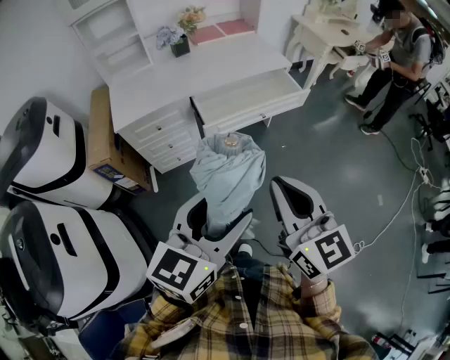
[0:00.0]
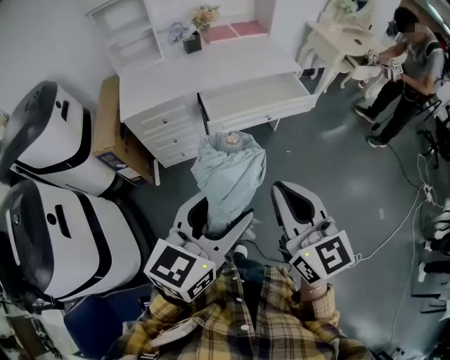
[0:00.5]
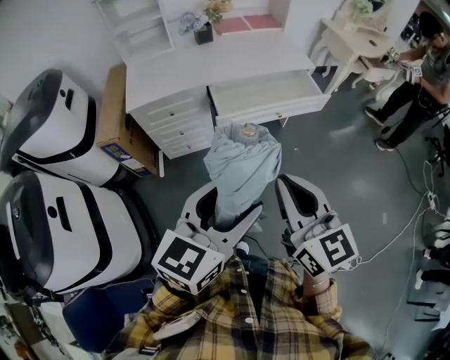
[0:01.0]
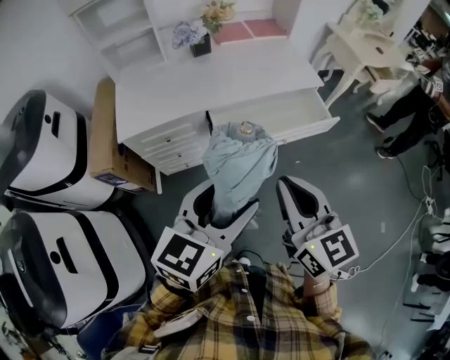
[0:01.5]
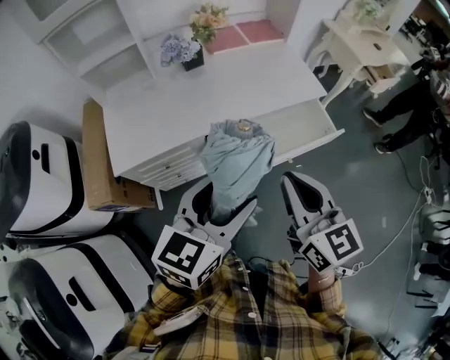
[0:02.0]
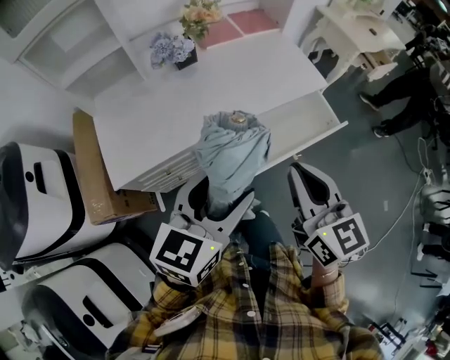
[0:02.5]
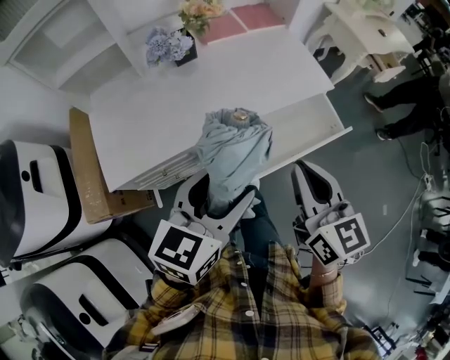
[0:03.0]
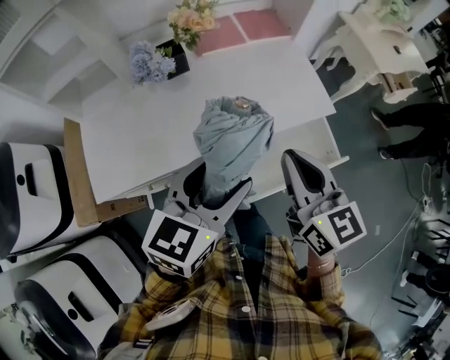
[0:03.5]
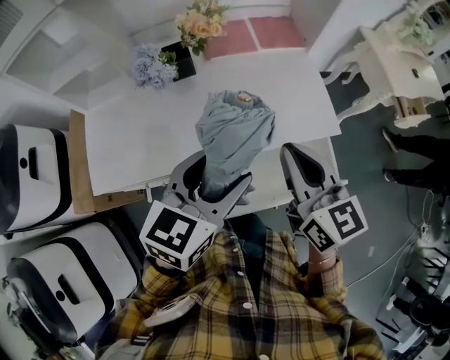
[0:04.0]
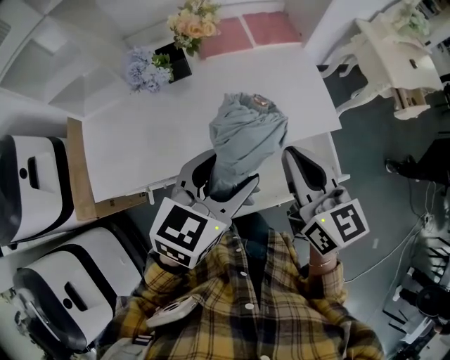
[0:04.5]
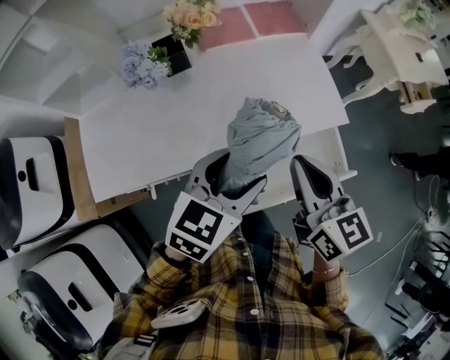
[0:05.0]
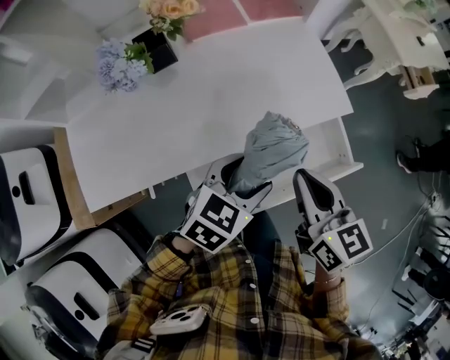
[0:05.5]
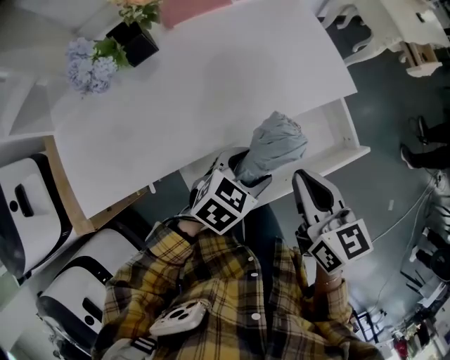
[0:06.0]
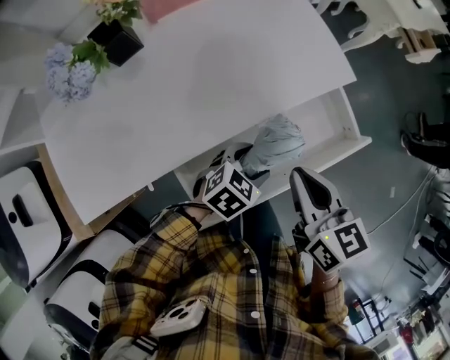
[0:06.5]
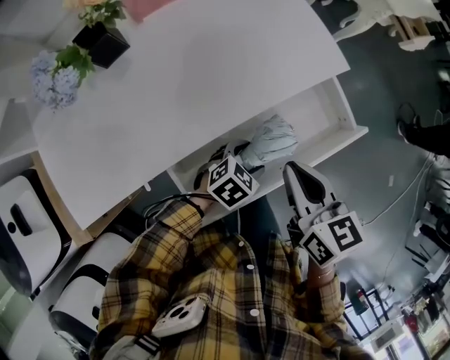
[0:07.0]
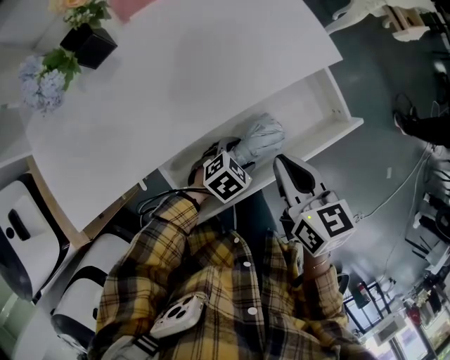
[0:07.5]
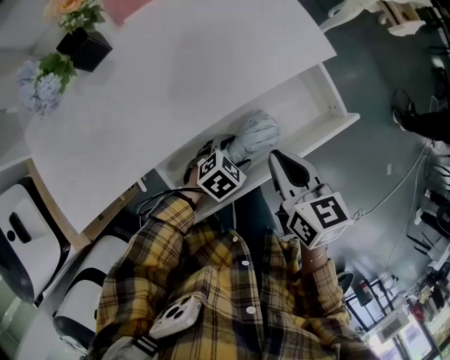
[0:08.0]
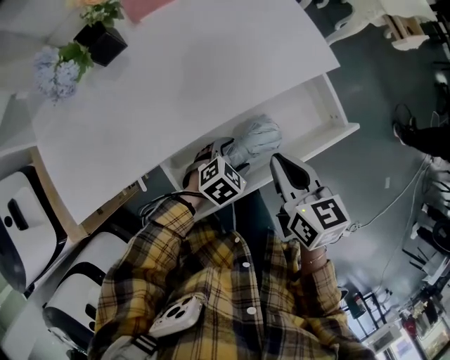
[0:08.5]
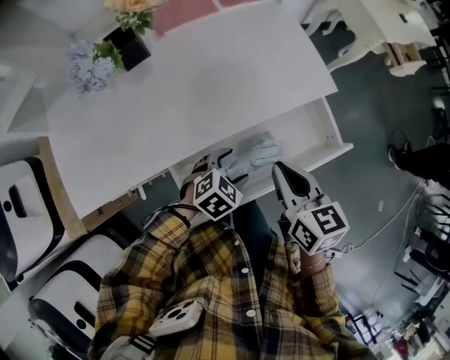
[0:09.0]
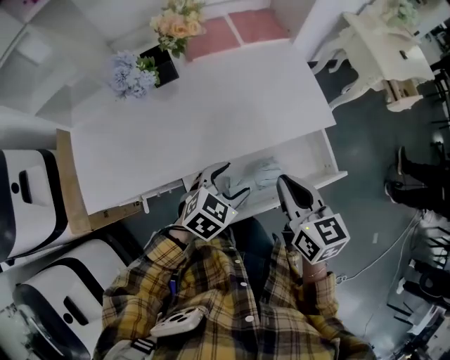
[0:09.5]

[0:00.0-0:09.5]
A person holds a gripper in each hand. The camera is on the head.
0:00.0 to 0:02.0: Both grippers move forward, about 30 cm.
0:02.0 to 0:04.0: The two grippers go about 25 cm forward.
0:04.0 to 0:05.5: The grippers both shift downward by approximately 15 cm. The left gripper swivels some 30 degrees.
0:05.5 to 0:07.5: The right gripper shifts some 10 cm downward. The left gripper is displaced downward by approximately 25 cm, and swivels roughly 30 degrees.
0:07.5 to 0:09.5: The right gripper goes approximately 10 cm upward; the left gripper travels upward by approximately 20 cm, and changes its angle by roughly 30 degrees.

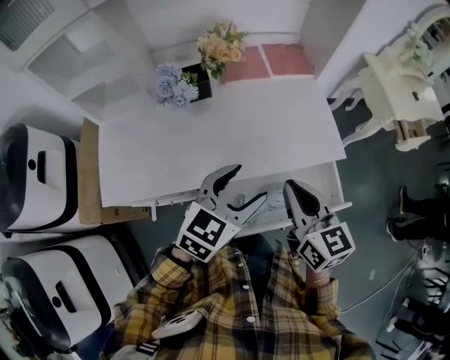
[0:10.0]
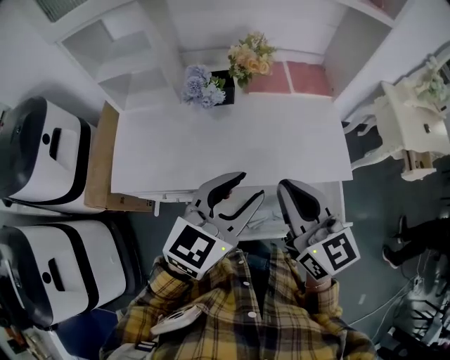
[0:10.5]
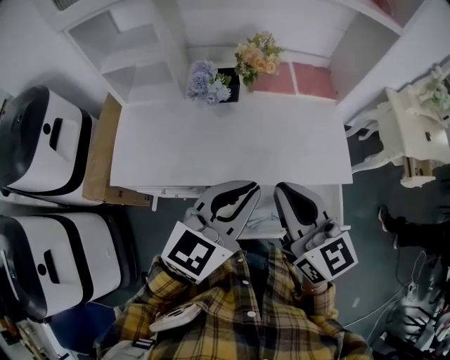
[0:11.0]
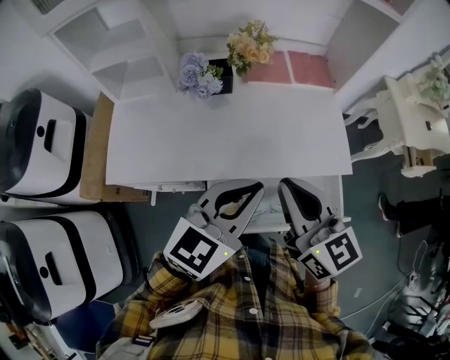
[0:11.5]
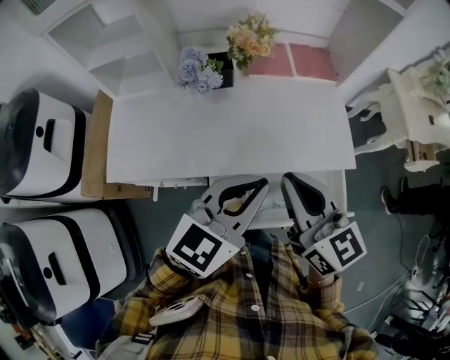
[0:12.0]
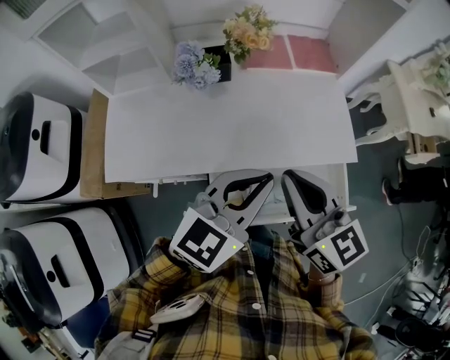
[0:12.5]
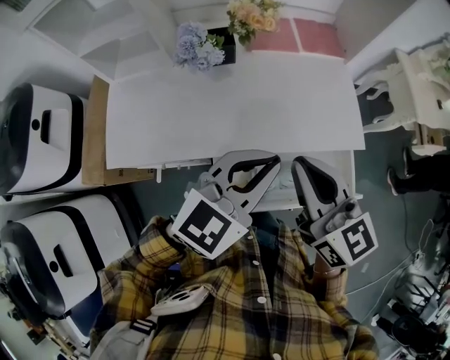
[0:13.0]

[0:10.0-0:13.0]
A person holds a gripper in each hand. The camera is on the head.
0:10.0 to 0:11.5: The left gripper heads upward, covering roughly 10 cm, and closes up. The right gripper goes about 10 cm upward and to the left.
0:11.5 to 0:13.0: The grippers stay close to where they were, moving slightly.

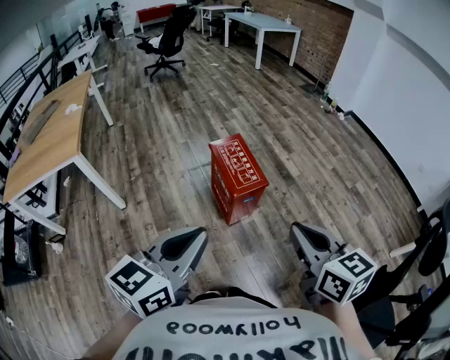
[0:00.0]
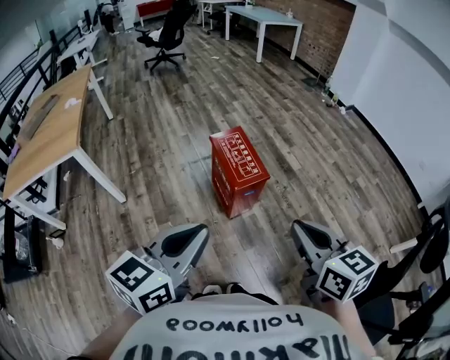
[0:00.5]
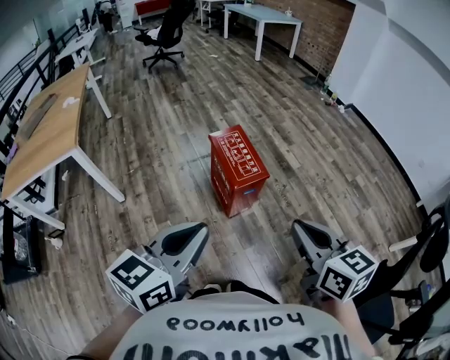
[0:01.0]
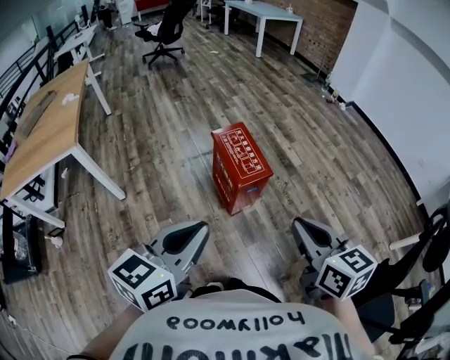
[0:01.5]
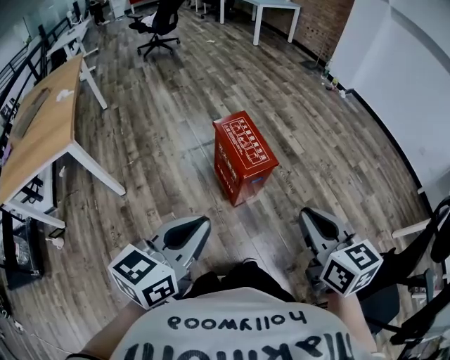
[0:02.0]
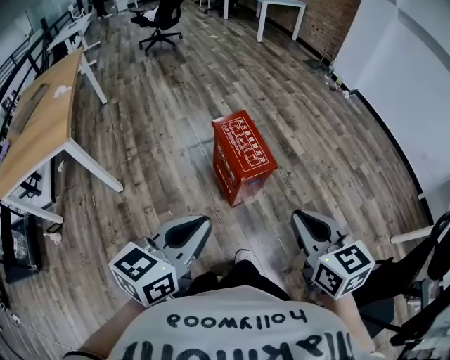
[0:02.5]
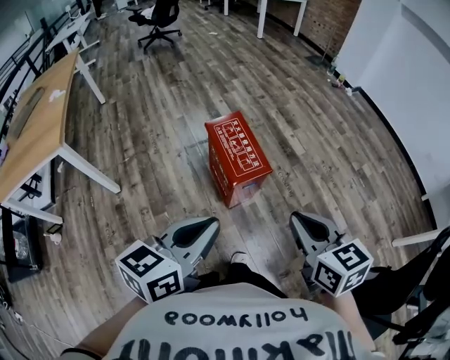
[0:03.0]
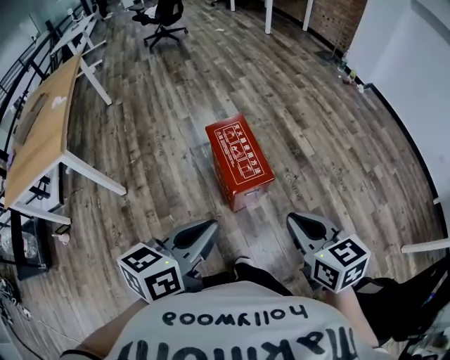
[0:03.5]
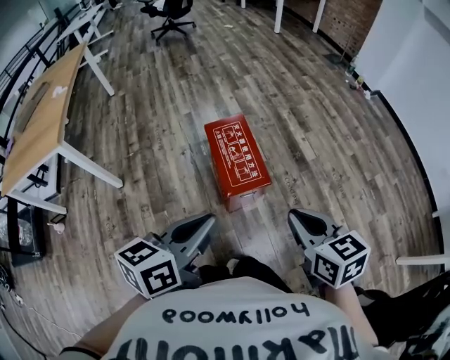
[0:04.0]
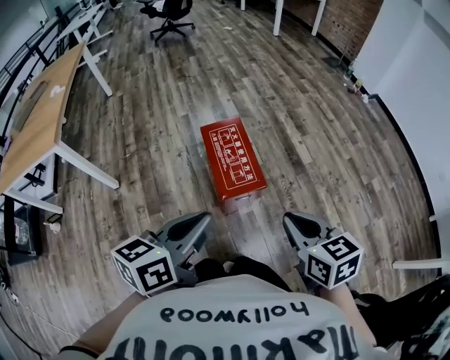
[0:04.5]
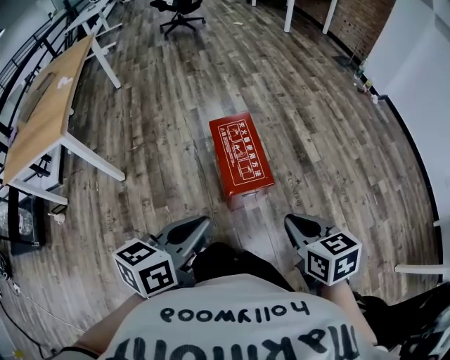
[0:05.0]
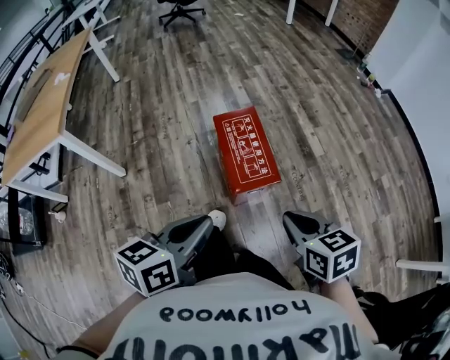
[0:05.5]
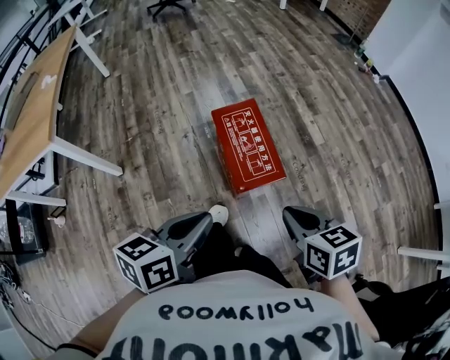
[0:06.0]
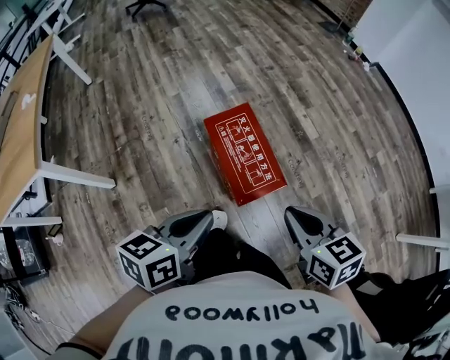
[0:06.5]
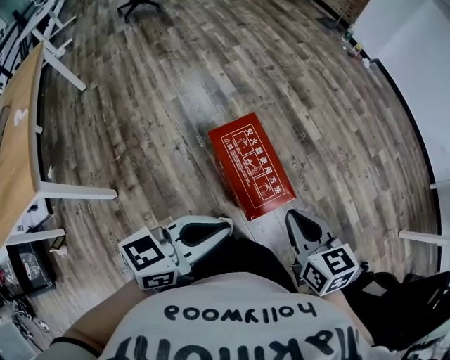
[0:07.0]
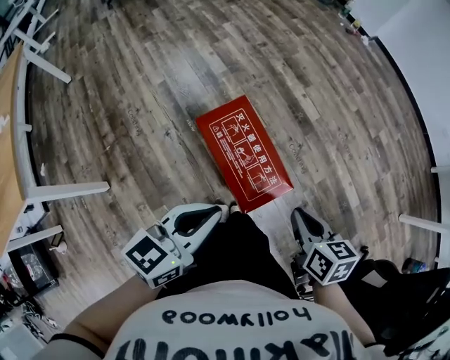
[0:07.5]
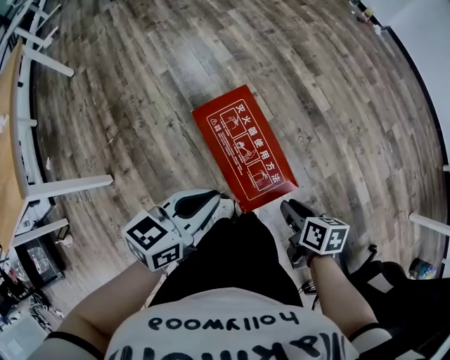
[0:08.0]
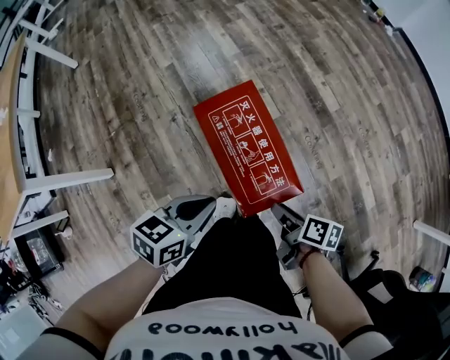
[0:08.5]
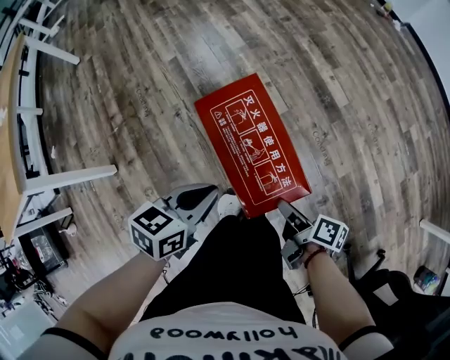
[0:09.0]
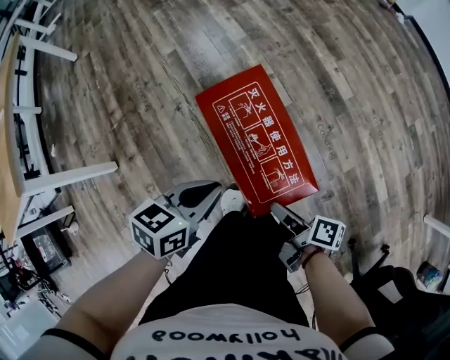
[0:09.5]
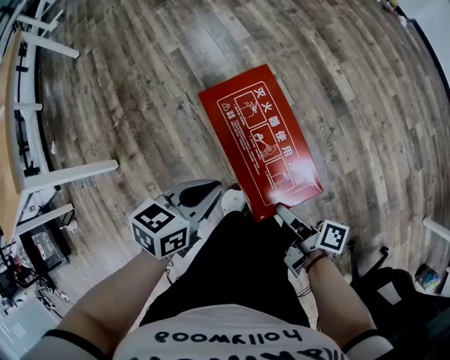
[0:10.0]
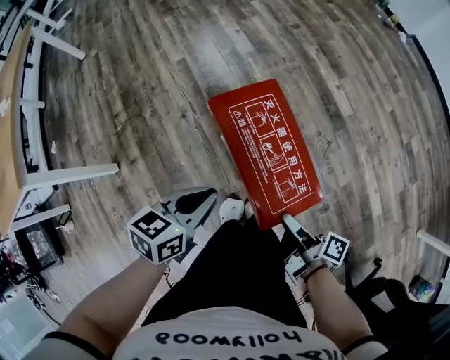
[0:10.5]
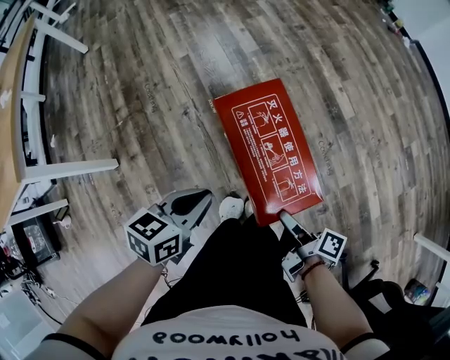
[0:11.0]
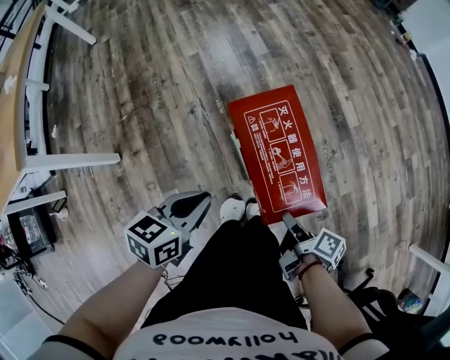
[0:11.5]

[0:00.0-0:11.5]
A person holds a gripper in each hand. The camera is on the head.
0:00.0 to 0:02.0: The right gripper ends up approximately 5 cm from where it was; the left gripper changes place by some 5 cm.
0:02.0 to 0:04.0: The left gripper shifts some 20 cm forward and to the right. Meanwhile the right gripper moves forward, to the right and downward, roughly 20 cm.
0:04.0 to 0:06.0: Both grippers move downward and to the left, approximately 10 cm.
0:06.0 to 0:07.5: The left gripper shifts approximately 15 cm forward, and swivels about 30 degrees, while the right gripper travels forward and downward by approximately 15 cm, and changes its angle by about 30 degrees.
0:07.5 to 0:09.5: Both grippers move downward, approximately 20 cm. The left gripper changes its angle by roughly 20 degrees, while the right gripper twists about 50 degrees clockwise, seen from behind, and opens up.
0:09.5 to 0:11.5: The left gripper shifts approximately 10 cm to the left.

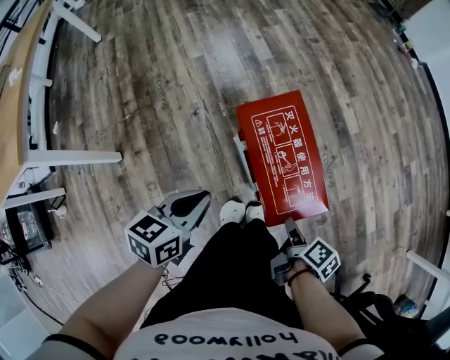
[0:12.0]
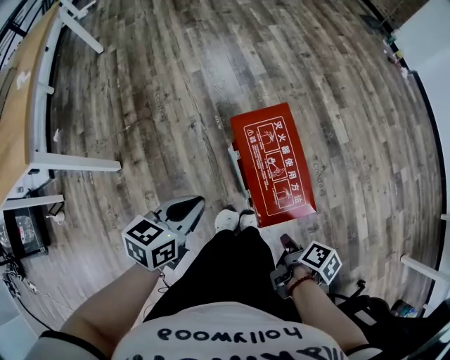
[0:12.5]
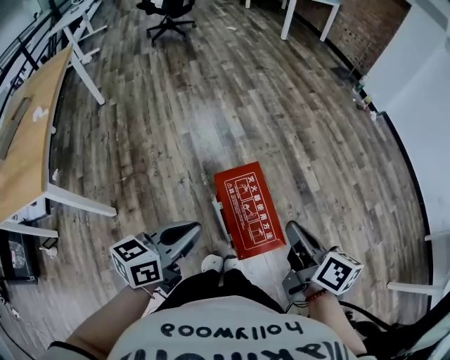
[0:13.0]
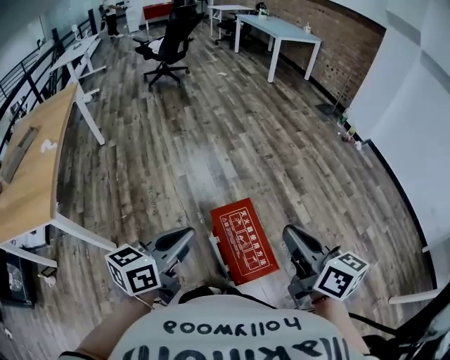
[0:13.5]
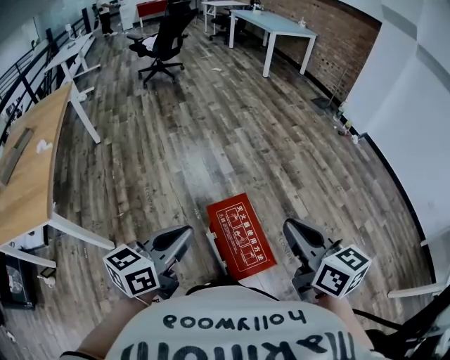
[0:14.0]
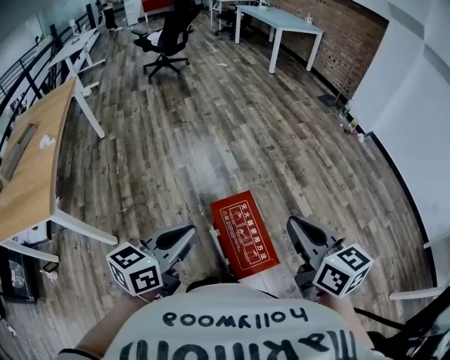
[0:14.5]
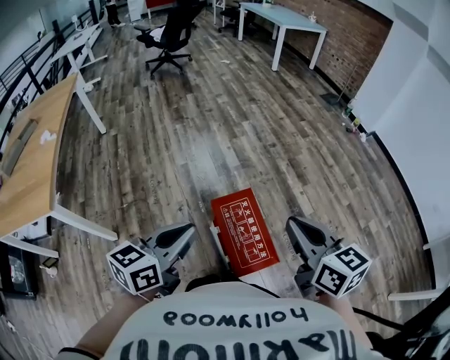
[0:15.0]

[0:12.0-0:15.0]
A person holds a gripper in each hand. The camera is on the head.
0:12.0 to 0:13.5: Both grippers travel together upward, approximately 35 cm. The left gripper turns by roughly 20 degrees. Meanwhile the right gripper tilts its fingers approximately 40 degrees upward, and closes its fingers.
0:13.5 to 0:15.0: There are only small adjustments of the grippers.
